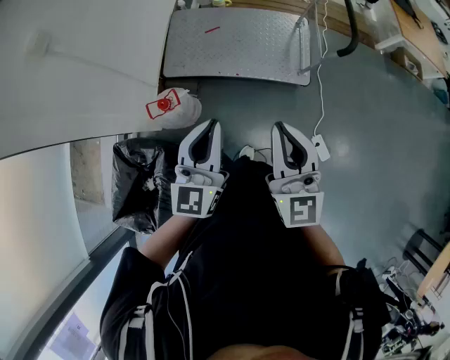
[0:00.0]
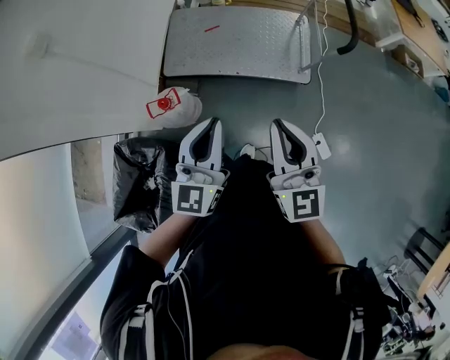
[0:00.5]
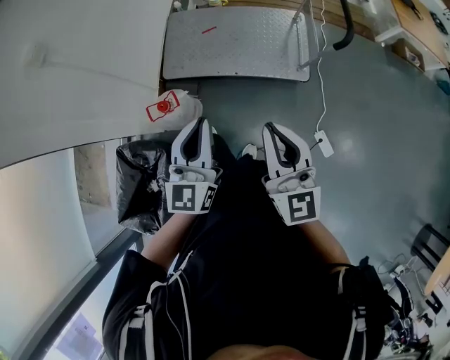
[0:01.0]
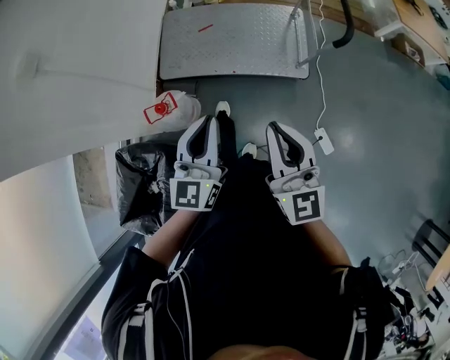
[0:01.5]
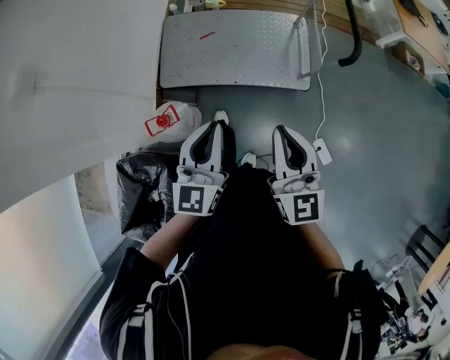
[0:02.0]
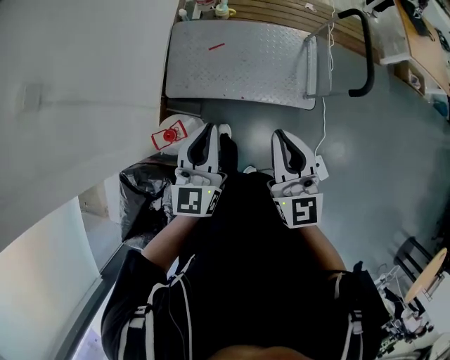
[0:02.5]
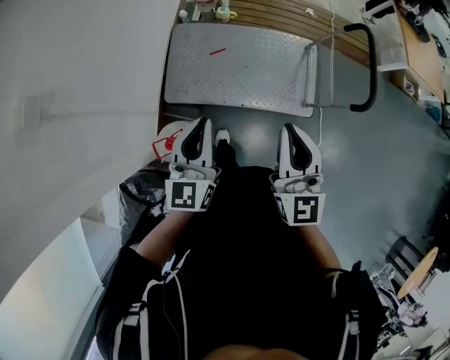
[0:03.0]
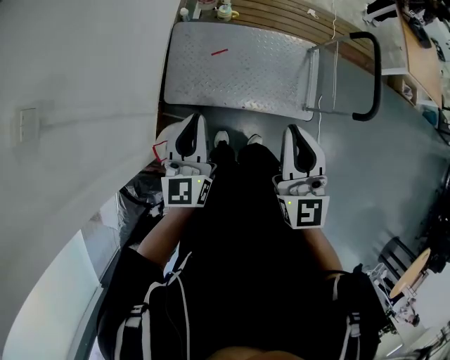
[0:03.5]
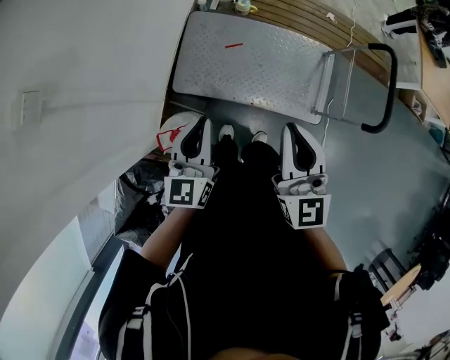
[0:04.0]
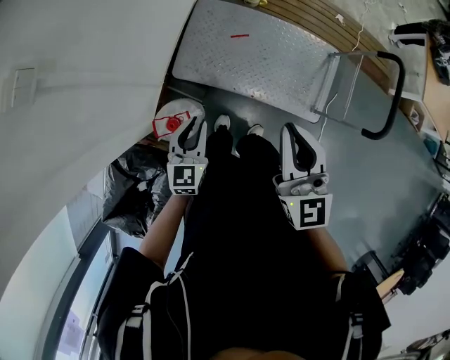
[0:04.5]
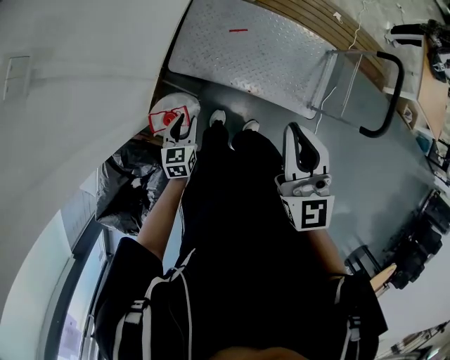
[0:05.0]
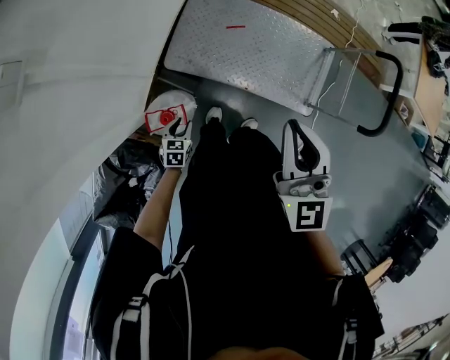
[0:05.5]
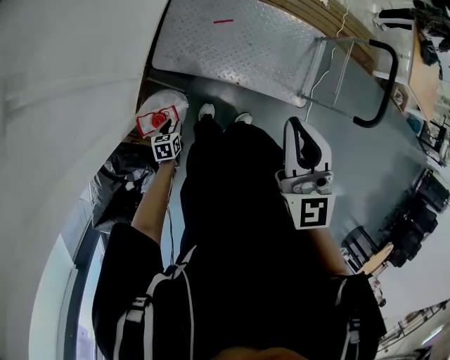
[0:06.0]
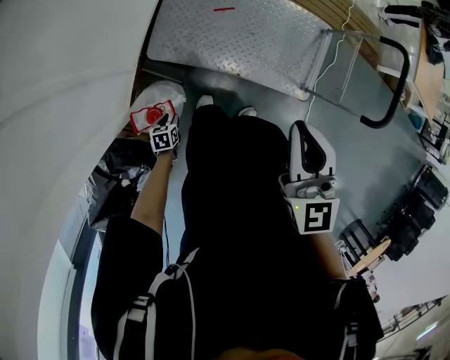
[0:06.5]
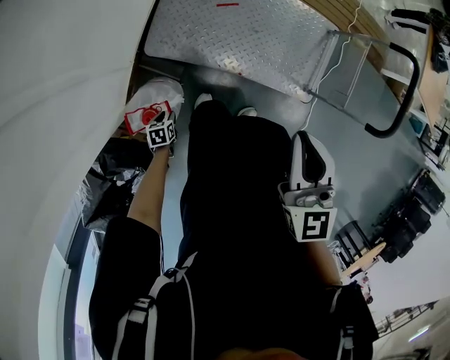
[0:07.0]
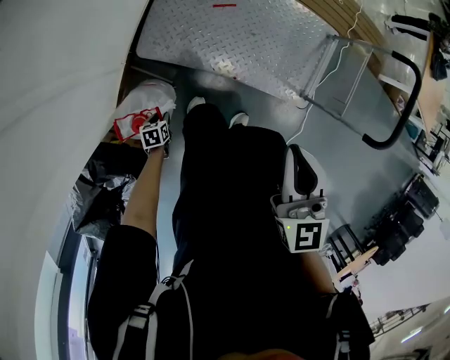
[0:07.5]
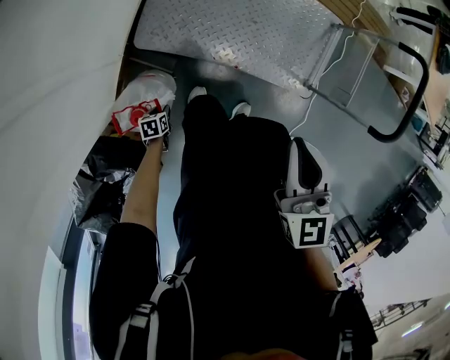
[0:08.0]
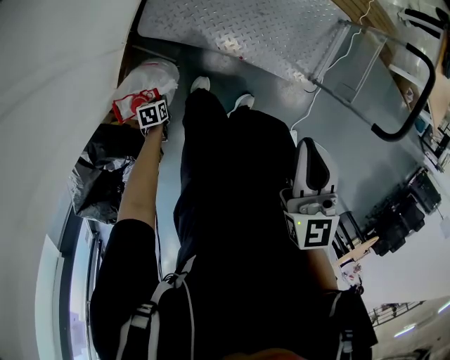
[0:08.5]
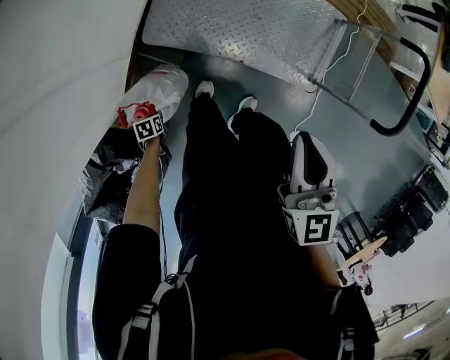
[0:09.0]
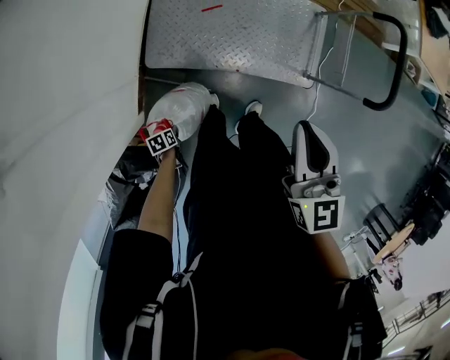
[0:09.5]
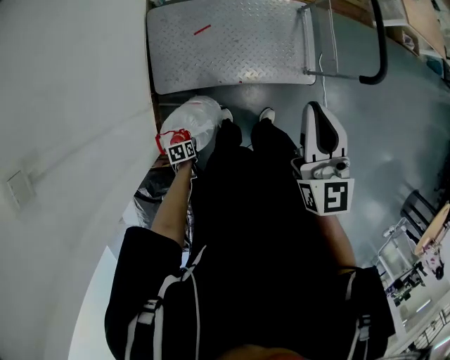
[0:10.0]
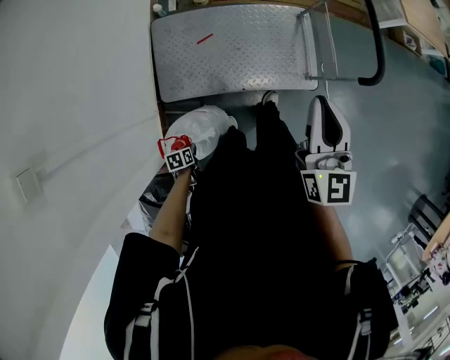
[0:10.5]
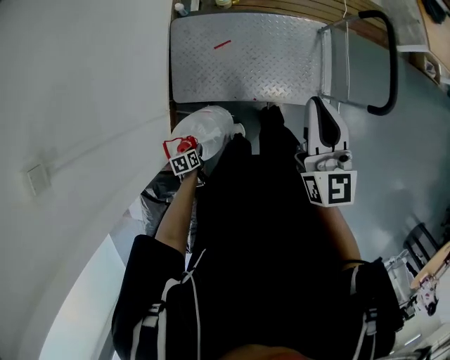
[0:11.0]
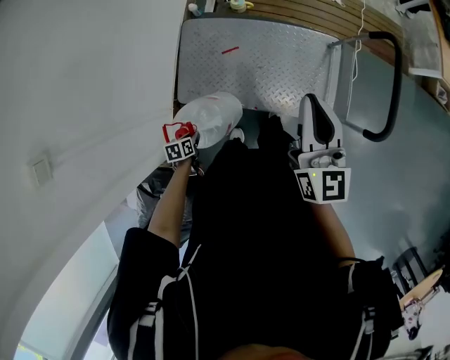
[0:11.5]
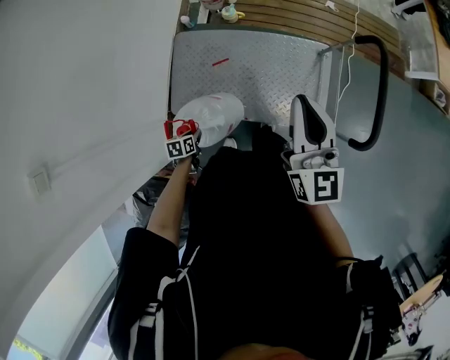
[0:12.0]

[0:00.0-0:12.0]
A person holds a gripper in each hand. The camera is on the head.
0:00.0 to 0:02.0: The grippers both shift forward by roughly 10 cm.
0:02.0 to 0:04.0: Both grippers travel together forward and to the left, some 30 cm.
0:04.0 to 0:06.0: The right gripper is displaced to the left by approximately 5 cm. Meanwhile the left gripper moves downward, some 40 cm, angles its fingers downward, by approximately 50 degrees, and opens up.
0:06.0 to 0:08.0: Both grippers travel together downward, some 15 cm.
0:08.0 to 0:10.0: Both grippers travel together upward, about 15 cm. The right gripper swivels some 30 degrees.
0:10.0 to 0:12.0: The left gripper shifts roughly 25 cm forward and upward, while the right gripper goes roughly 25 cm forward.

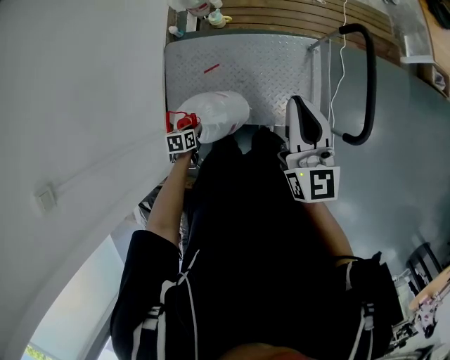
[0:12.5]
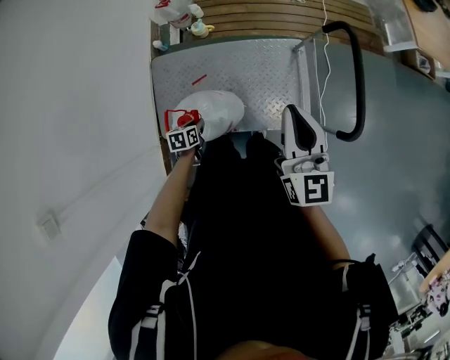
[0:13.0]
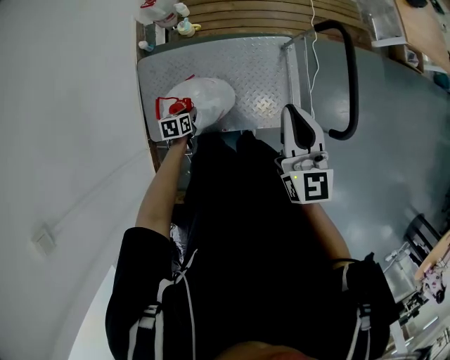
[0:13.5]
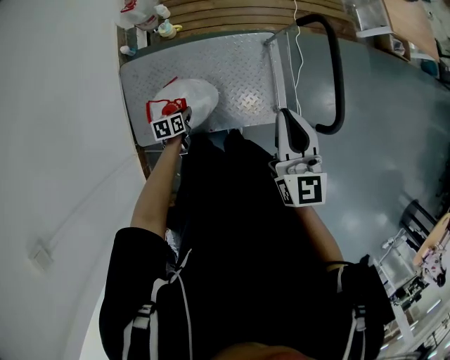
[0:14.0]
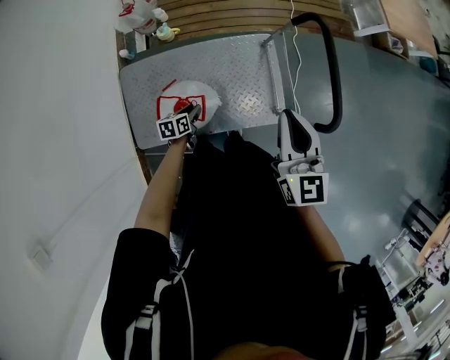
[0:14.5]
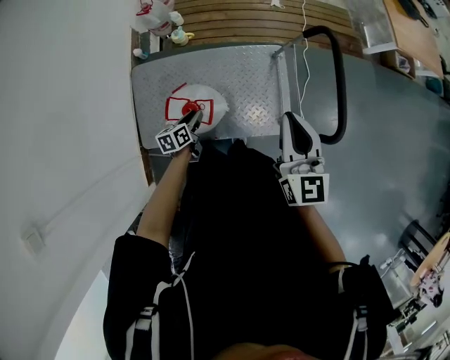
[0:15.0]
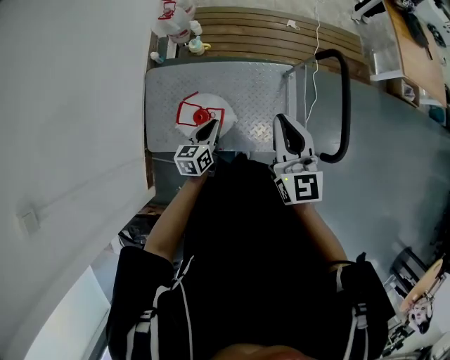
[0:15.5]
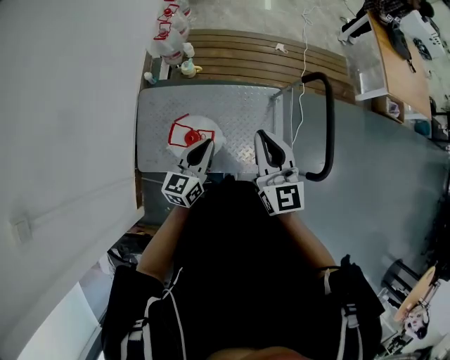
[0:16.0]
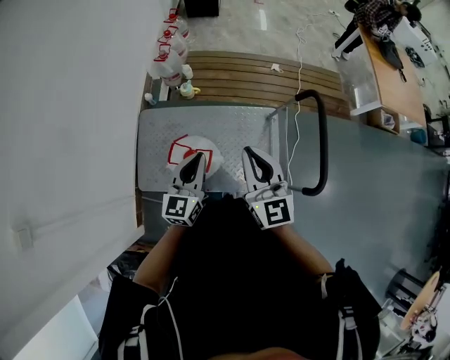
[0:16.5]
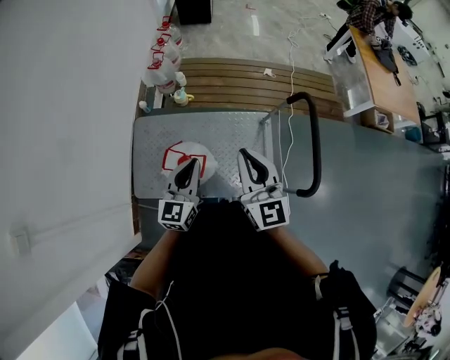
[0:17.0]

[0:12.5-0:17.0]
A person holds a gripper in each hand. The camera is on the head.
0:12.5 to 0:14.5: The left gripper heads forward and to the right, covering about 20 cm, and swivels approximately 20 degrees. Meanwhile the right gripper travels to the right by roughly 5 cm.
0:14.5 to 0:17.0: The right gripper is displaced to the left by approximately 10 cm, and rotates roughly 20 degrees; the left gripper is displaced upward by some 30 cm, angles its fingers upward, by some 40 degrees, and closes up.

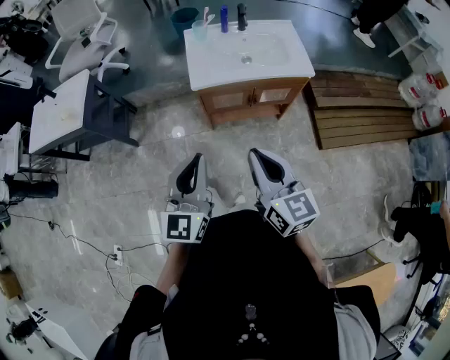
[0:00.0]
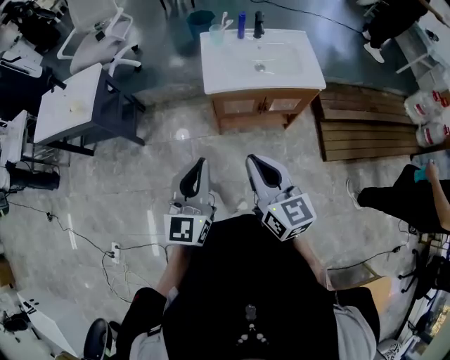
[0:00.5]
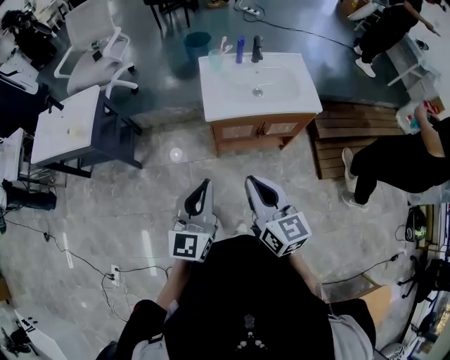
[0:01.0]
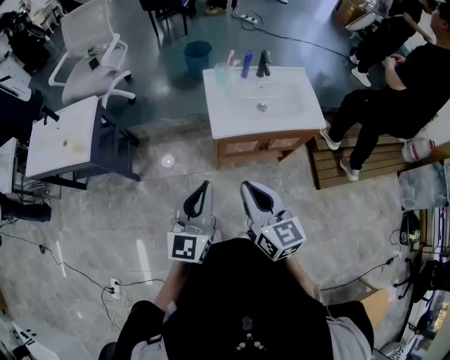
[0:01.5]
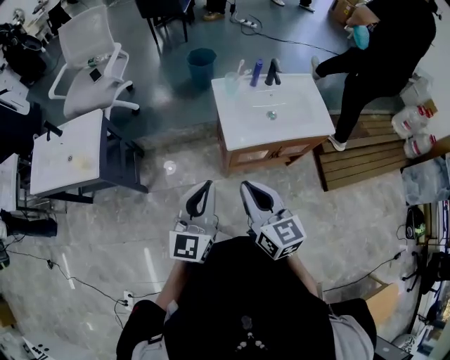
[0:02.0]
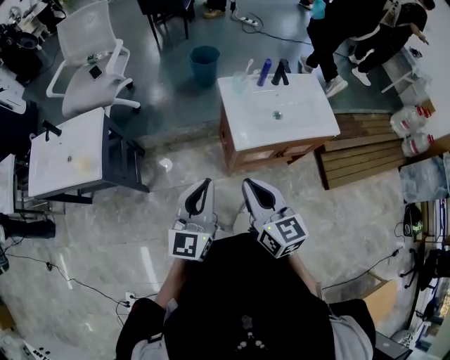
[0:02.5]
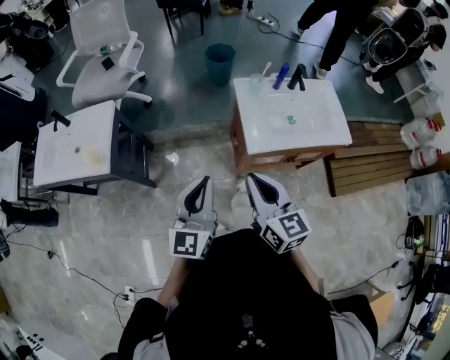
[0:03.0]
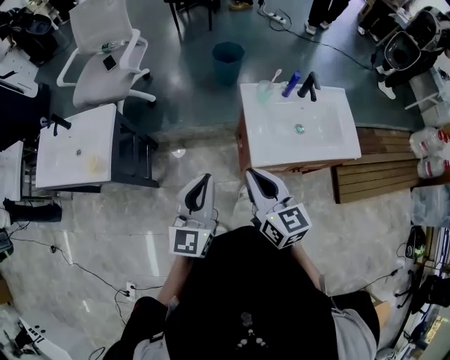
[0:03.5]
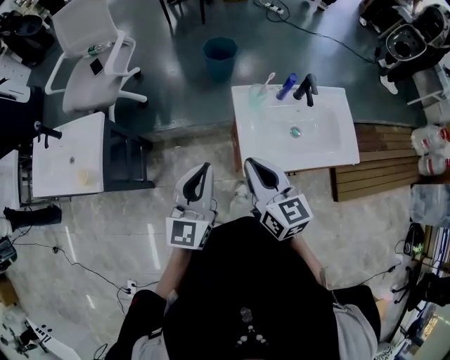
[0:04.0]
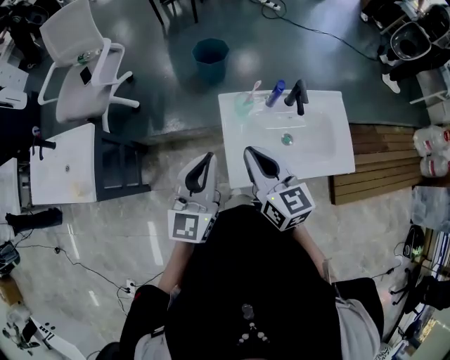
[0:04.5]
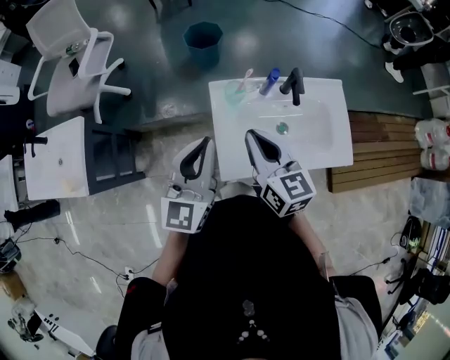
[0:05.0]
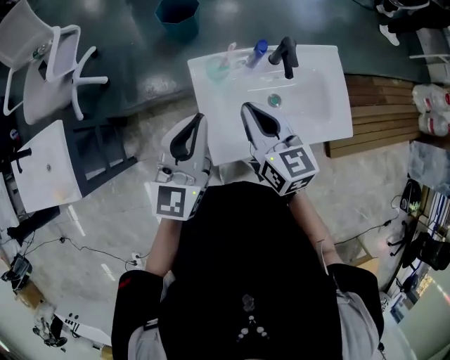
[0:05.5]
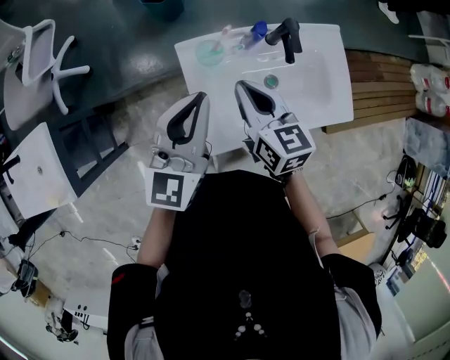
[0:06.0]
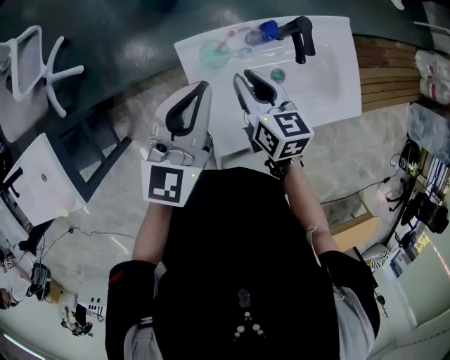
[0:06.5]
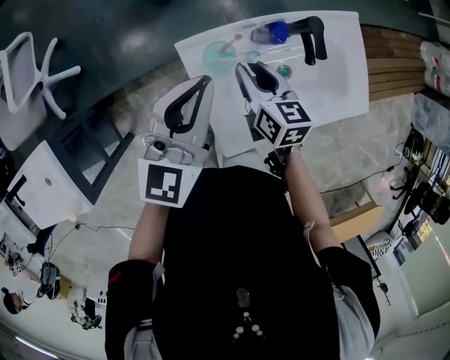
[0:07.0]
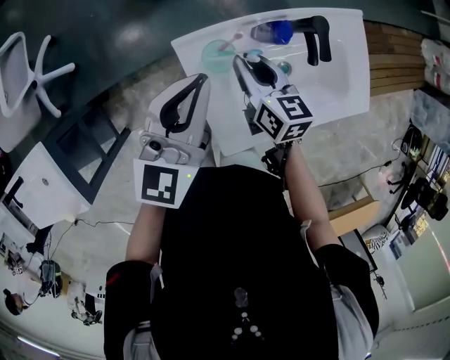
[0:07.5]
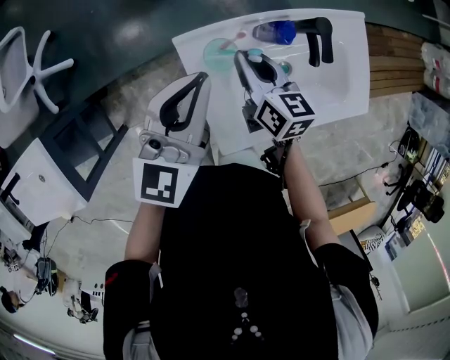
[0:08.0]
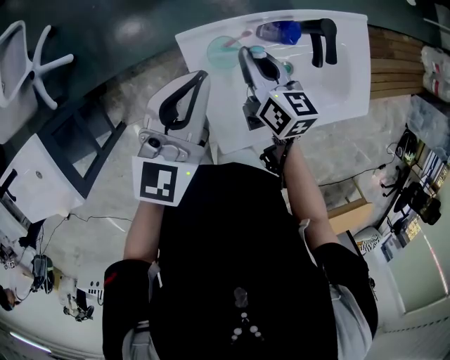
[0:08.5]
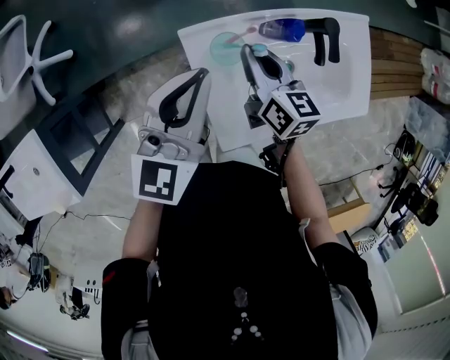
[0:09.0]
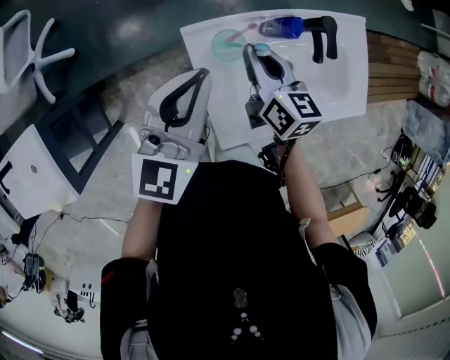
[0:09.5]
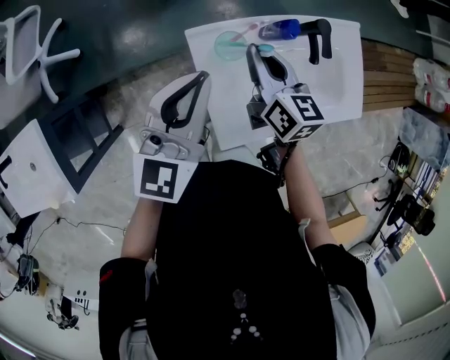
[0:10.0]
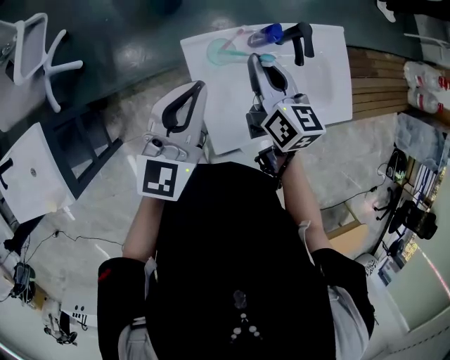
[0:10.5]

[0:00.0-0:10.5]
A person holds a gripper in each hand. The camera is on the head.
0:00.0 to 0:02.0: The right gripper is displaced to the left and forward by about 25 cm. The left gripper is displaced forward and to the left by approximately 25 cm.
0:02.0 to 0:04.0: The grippers both shift forward by some 25 cm.
0:04.0 to 0:06.5: The right gripper shifts approximately 30 cm forward, downward and to the right, changes its angle by about 20 degrees, and opens up, while the left gripper is displaced forward and to the right by approximately 30 cm.
0:06.5 to 0:08.5: The right gripper is displaced forward by roughly 5 cm.
0:08.5 to 0:10.5: The left gripper is displaced backward by roughly 5 cm. The right gripper heads upward, covering some 10 cm.
